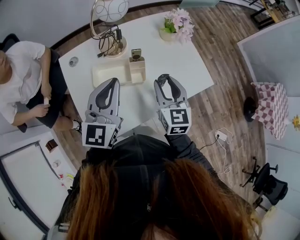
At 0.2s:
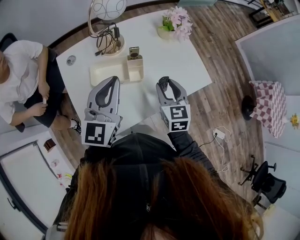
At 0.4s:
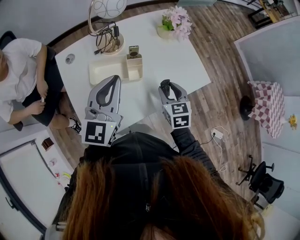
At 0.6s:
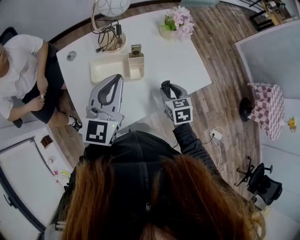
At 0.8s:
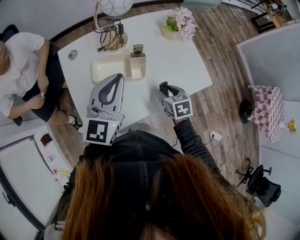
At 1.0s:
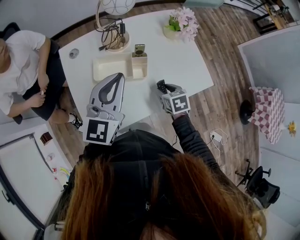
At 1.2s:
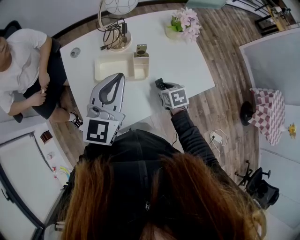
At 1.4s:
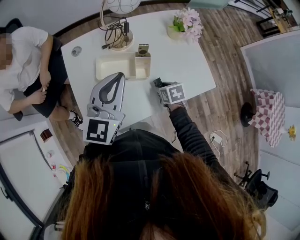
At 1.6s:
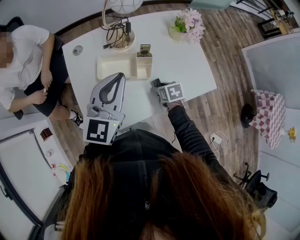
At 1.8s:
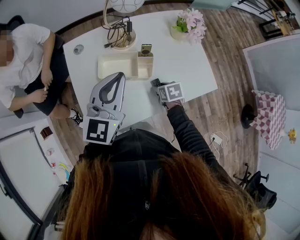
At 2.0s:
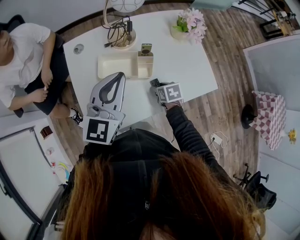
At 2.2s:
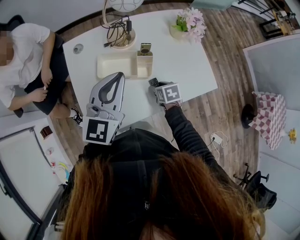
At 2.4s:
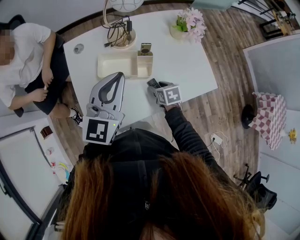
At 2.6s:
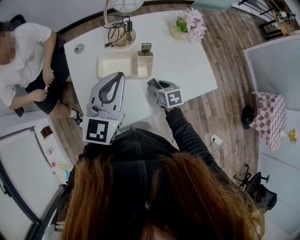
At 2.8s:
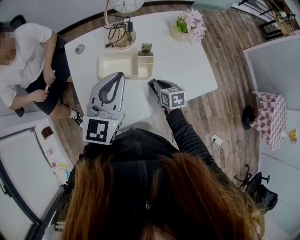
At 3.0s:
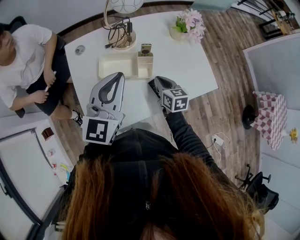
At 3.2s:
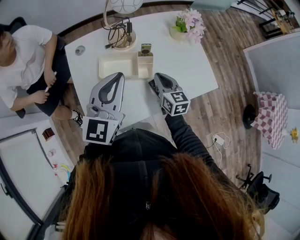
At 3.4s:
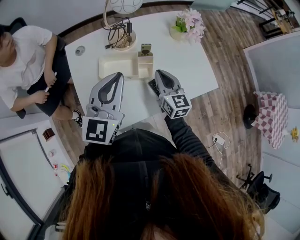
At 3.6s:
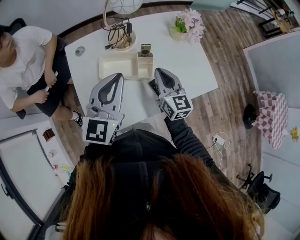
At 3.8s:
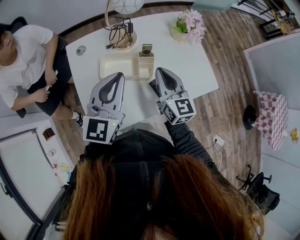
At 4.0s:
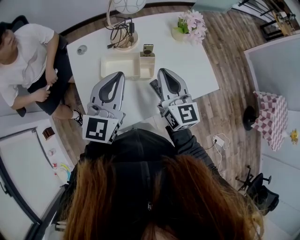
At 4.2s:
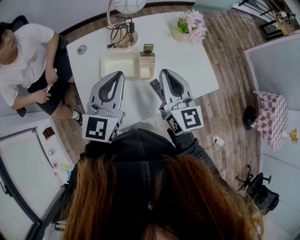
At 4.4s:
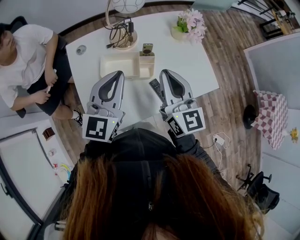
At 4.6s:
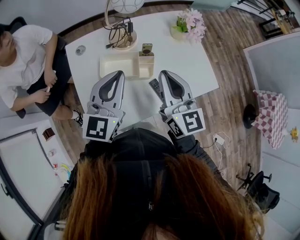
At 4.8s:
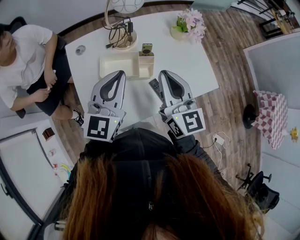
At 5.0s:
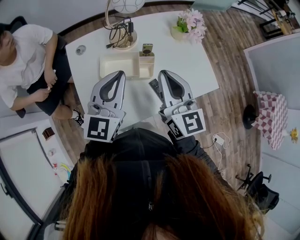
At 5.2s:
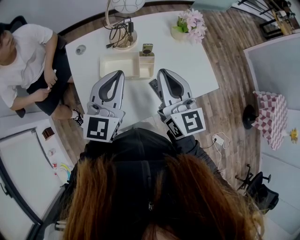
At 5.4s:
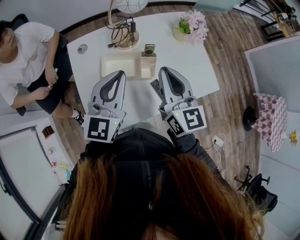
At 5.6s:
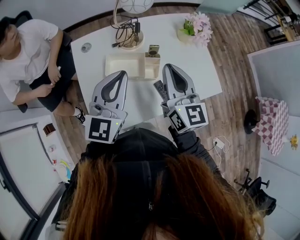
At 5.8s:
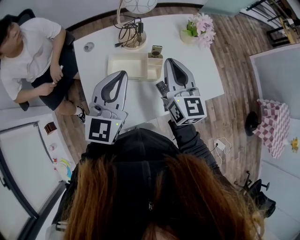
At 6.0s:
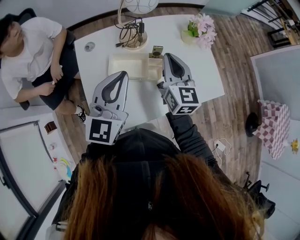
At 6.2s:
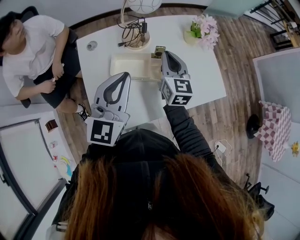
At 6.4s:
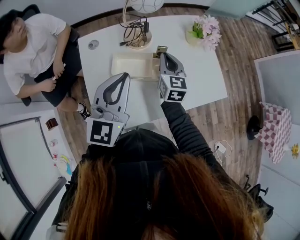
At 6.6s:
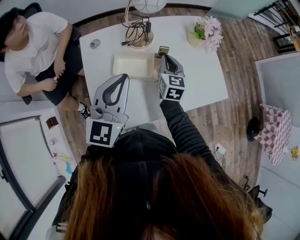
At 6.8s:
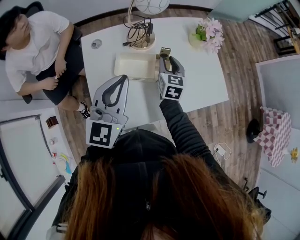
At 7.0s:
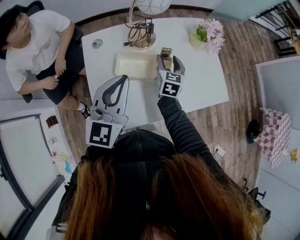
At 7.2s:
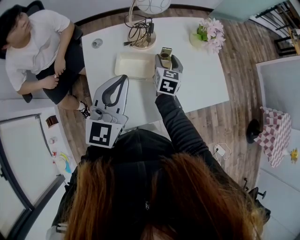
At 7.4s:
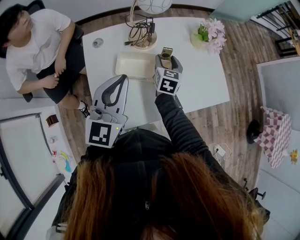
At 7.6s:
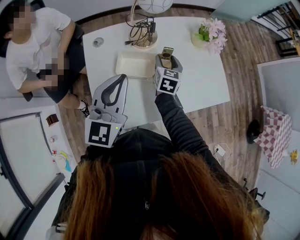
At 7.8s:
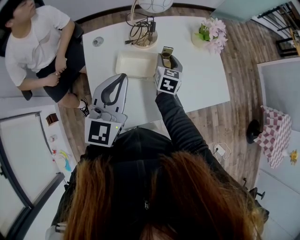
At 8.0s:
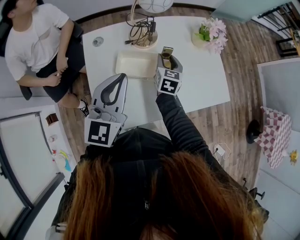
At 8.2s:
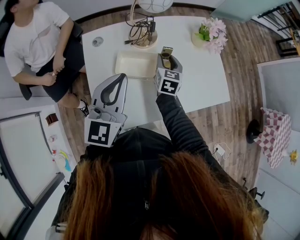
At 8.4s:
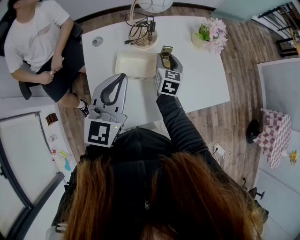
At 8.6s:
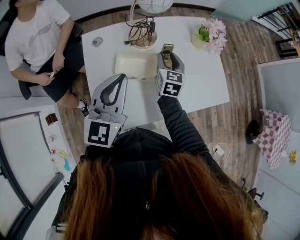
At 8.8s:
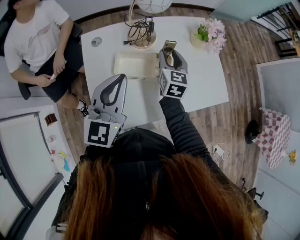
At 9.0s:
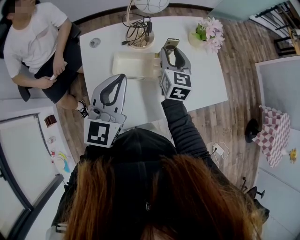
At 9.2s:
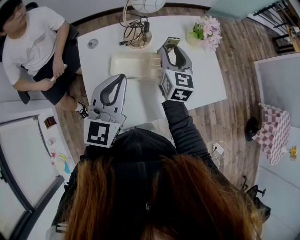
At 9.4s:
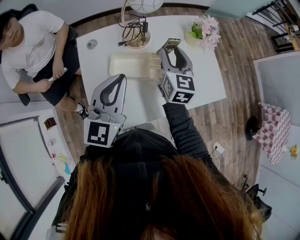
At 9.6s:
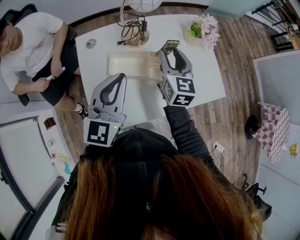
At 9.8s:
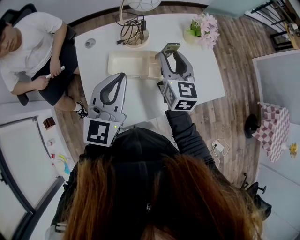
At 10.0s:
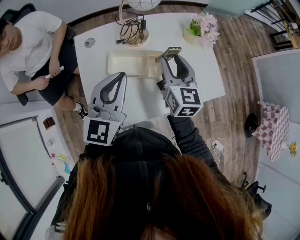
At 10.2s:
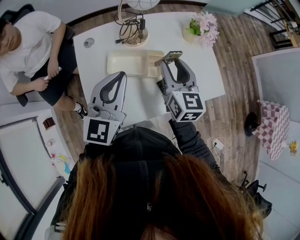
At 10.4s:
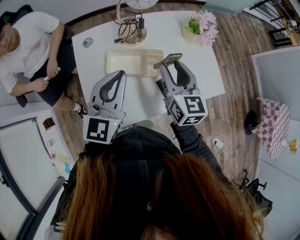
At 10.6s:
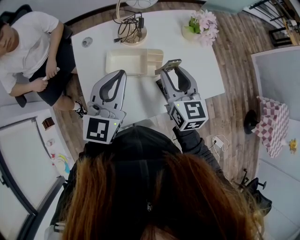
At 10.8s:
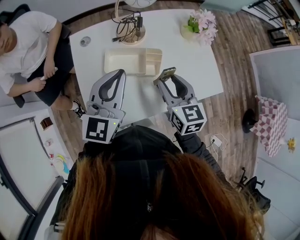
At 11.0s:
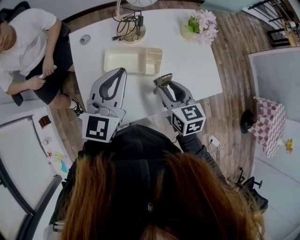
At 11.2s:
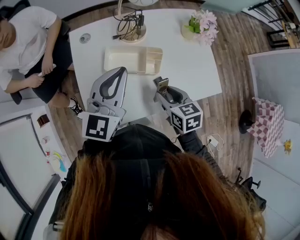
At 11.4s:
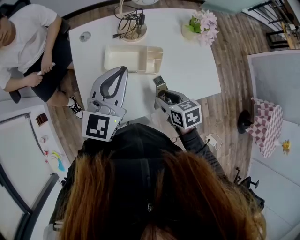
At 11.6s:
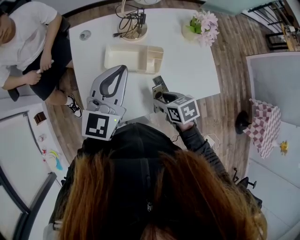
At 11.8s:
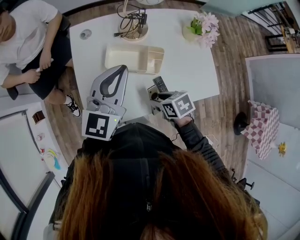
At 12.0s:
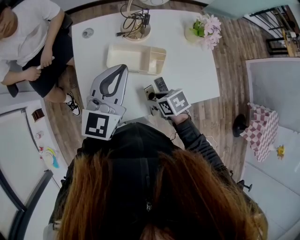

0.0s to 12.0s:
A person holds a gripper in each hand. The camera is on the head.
0.0s to 1.6s: The right gripper heads downward, covering roughly 20 cm, and tilts its fingers some 40 degrees downward.
1.6s to 3.0s: The right gripper travels upward by roughly 5 cm, turns by approximately 30 degrees, and closes up.
3.0s to 4.4s: The right gripper shifts some 20 cm upward, and points its fingers roughly 30 degrees further upward.
4.4s to 6.0s: The right gripper goes about 10 cm forward.
6.0s to 7.6s: The right gripper is displaced downward by roughly 15 cm, changes its angle by roughly 20 degrees, and opens its fingers.
7.6s to 9.0s: The right gripper goes about 10 cm upward.
9.0s to 10.4s: The right gripper heads backward, covering approximately 10 cm.
10.4s to 12.0s: The right gripper moves downward, approximately 20 cm, and tips its fingers downward by about 50 degrees.

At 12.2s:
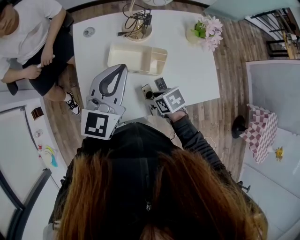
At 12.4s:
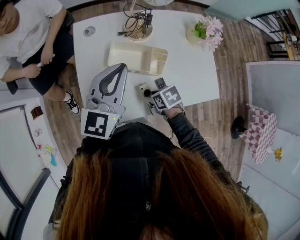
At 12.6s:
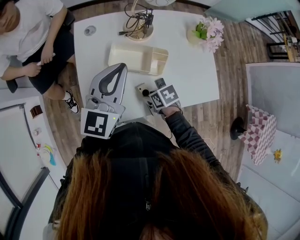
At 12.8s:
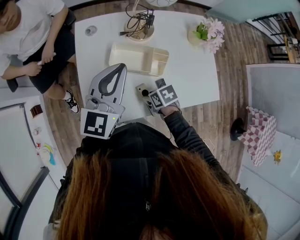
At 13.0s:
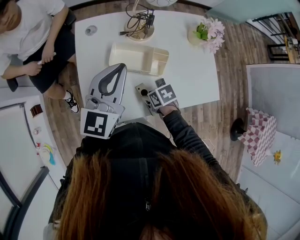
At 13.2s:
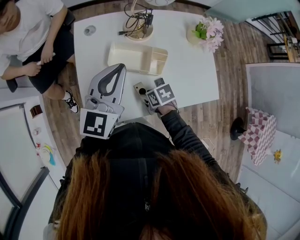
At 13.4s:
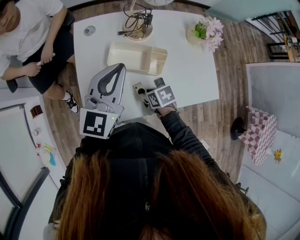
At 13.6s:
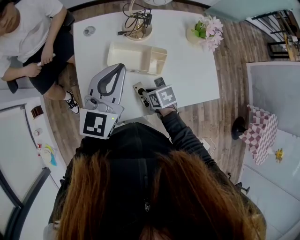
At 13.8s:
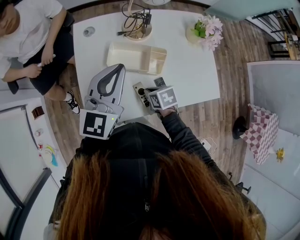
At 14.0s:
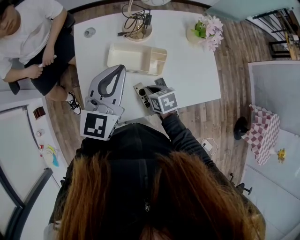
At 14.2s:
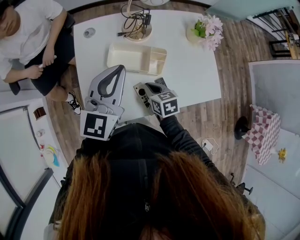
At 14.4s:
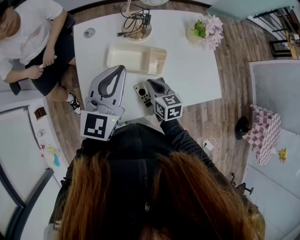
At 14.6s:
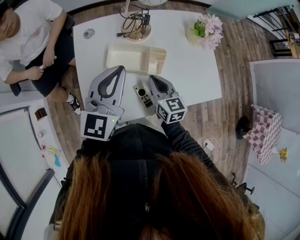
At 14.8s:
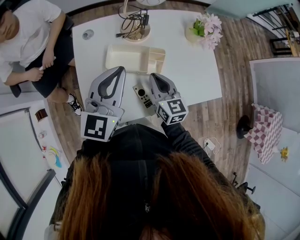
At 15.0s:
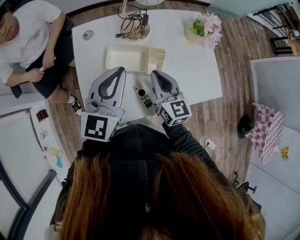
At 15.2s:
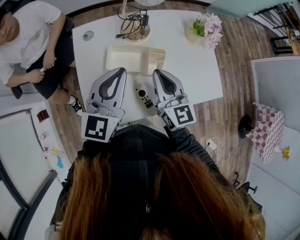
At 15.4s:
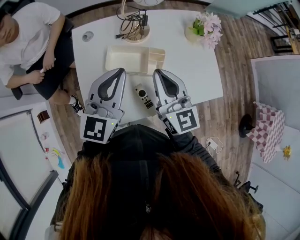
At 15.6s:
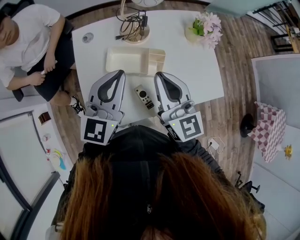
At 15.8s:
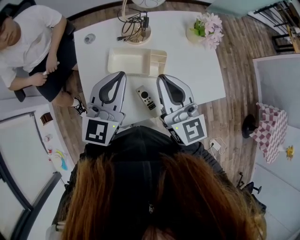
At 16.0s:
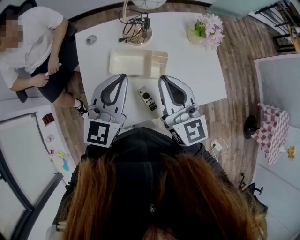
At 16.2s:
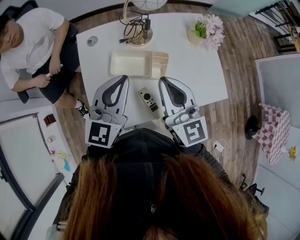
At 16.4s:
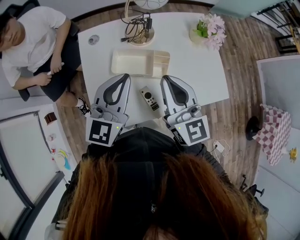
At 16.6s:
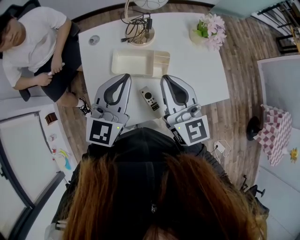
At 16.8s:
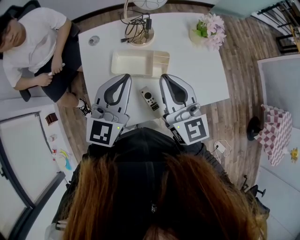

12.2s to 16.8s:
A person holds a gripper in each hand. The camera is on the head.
12.2s to 13.8s: The right gripper closes.
13.8s to 15.2s: The right gripper shifts roughly 20 cm upward, and angles its fingers upward, by roughly 60 degrees.
15.2s to 16.8s: The right gripper moves upward, about 10 cm.

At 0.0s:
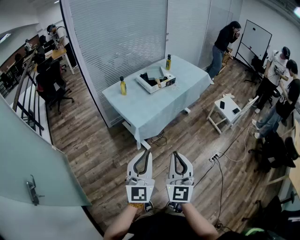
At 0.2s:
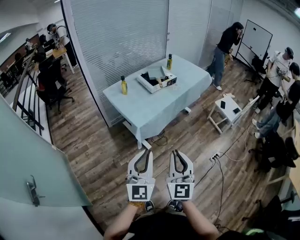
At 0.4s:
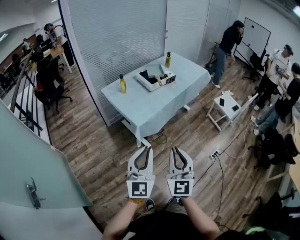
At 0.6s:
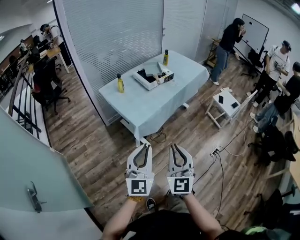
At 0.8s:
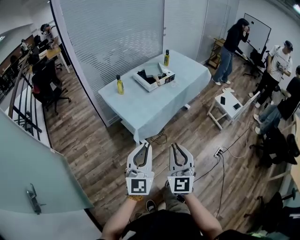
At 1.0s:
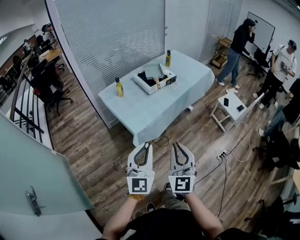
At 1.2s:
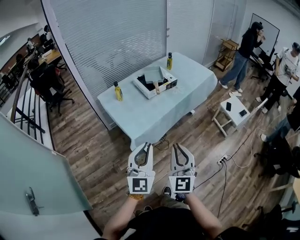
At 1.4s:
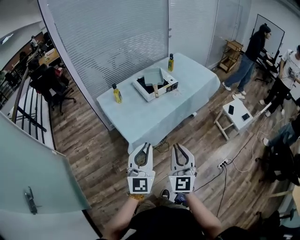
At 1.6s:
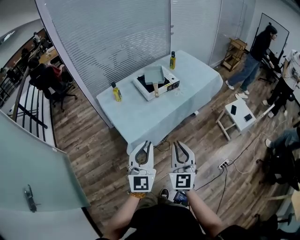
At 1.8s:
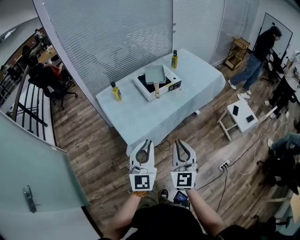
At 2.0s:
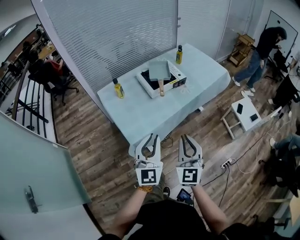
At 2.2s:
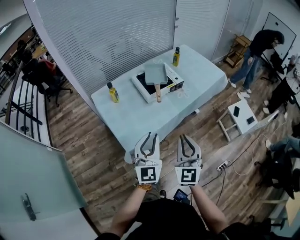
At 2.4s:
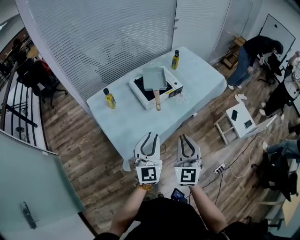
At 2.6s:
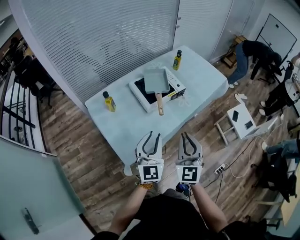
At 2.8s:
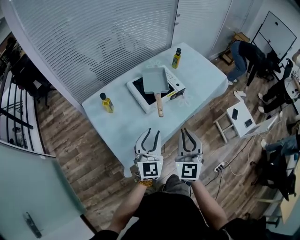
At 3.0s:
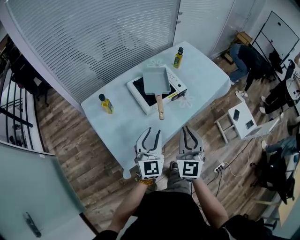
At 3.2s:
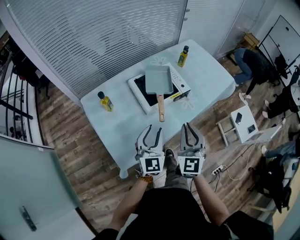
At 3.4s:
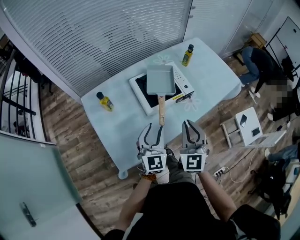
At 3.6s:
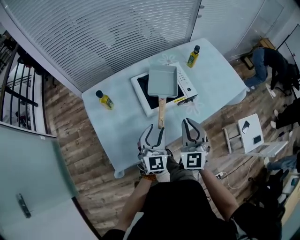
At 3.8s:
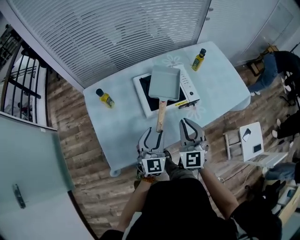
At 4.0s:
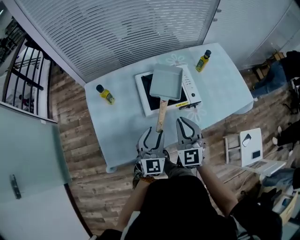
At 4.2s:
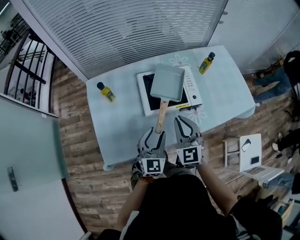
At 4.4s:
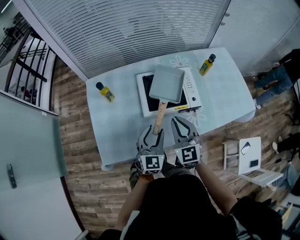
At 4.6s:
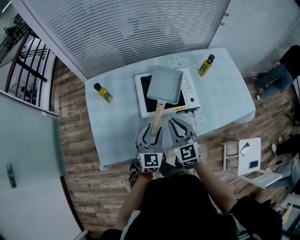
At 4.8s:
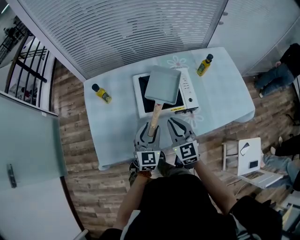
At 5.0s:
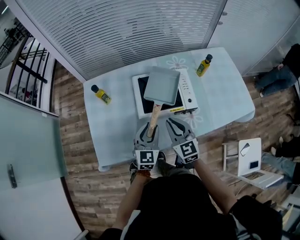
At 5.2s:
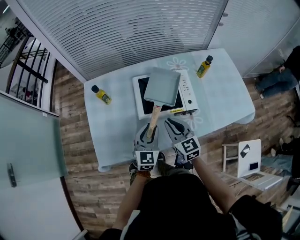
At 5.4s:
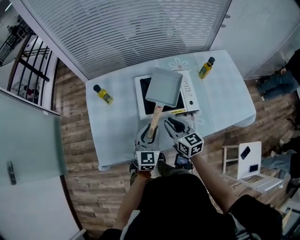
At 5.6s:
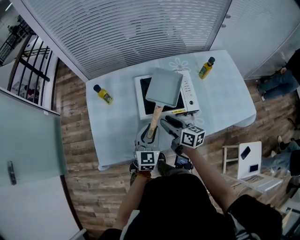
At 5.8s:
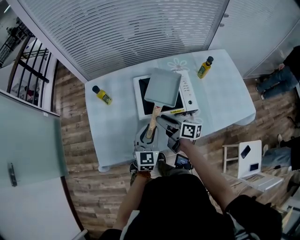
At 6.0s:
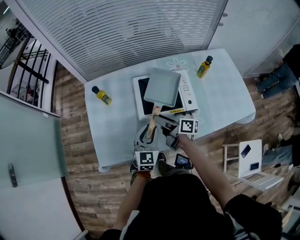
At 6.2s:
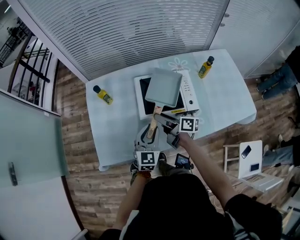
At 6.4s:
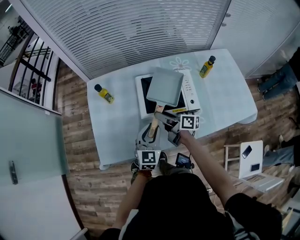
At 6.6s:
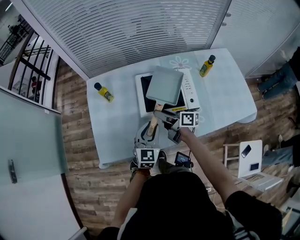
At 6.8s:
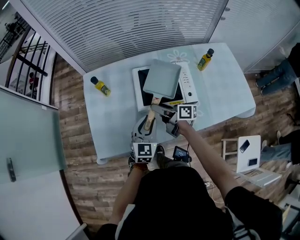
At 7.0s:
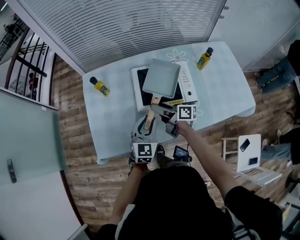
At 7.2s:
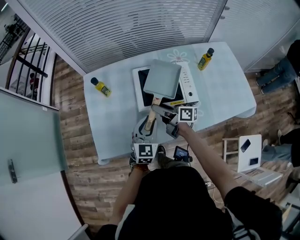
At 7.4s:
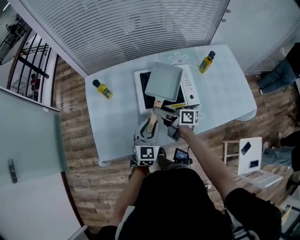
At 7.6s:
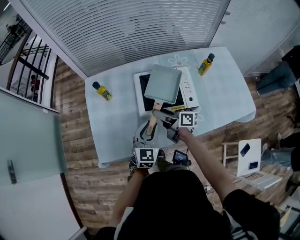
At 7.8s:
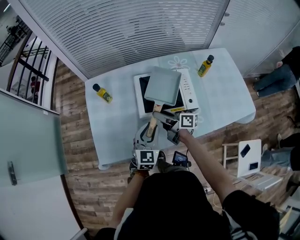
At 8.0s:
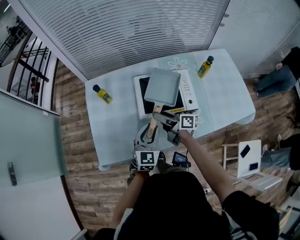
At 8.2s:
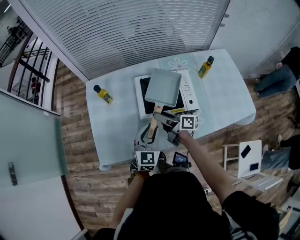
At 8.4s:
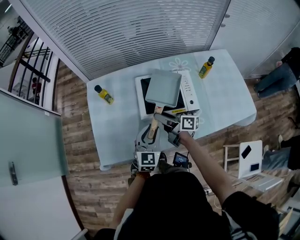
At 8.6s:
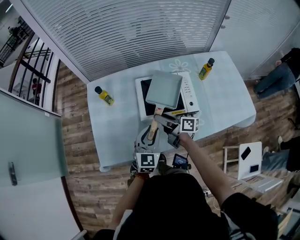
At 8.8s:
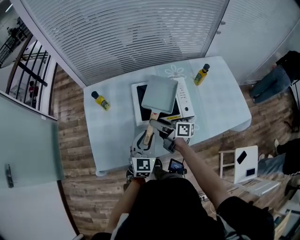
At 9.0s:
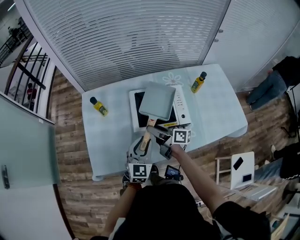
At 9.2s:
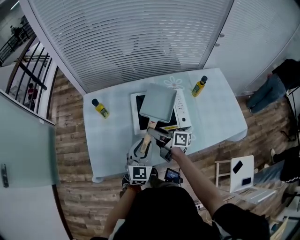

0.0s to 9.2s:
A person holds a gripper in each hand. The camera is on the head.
0.0s to 1.6s: The two grippers go about 25 cm forward.
1.6s to 3.0s: Both grippers travel together forward, approximately 30 cm. The left gripper opens up.
3.0s to 4.6s: The right gripper moves about 20 cm, and rotates roughly 40 degrees; the left gripper ends up roughly 20 cm from where it was, and changes its angle by roughly 20 degrees.
4.6s to 6.2s: The right gripper is displaced forward and downward by about 10 cm, rolls clockwise, seen from behind, by some 70 degrees, and opens its fingers.
6.2s to 9.2s: There are only small adjustments of the grippers.
